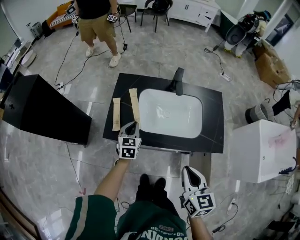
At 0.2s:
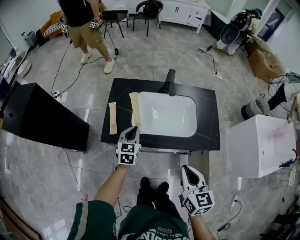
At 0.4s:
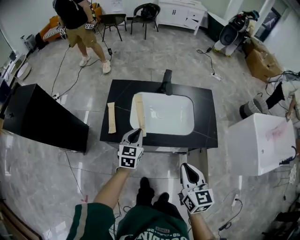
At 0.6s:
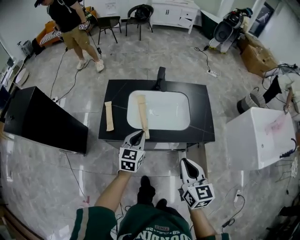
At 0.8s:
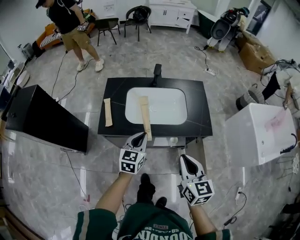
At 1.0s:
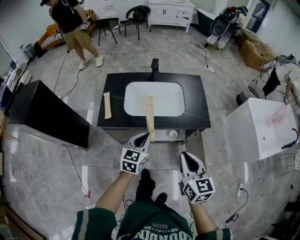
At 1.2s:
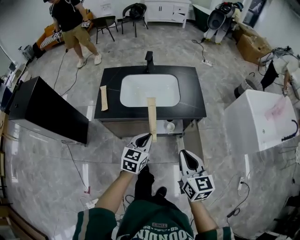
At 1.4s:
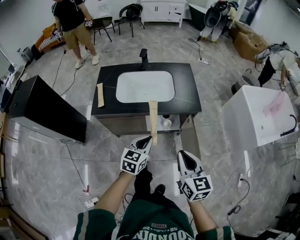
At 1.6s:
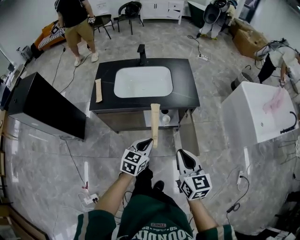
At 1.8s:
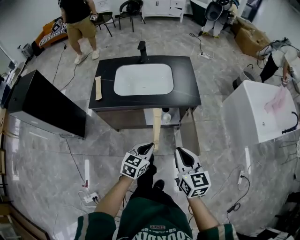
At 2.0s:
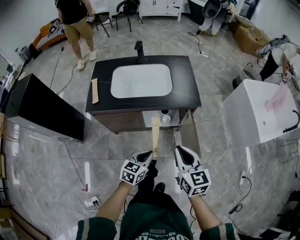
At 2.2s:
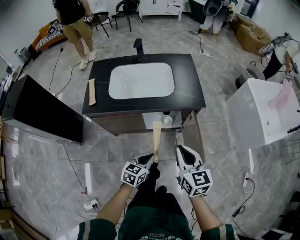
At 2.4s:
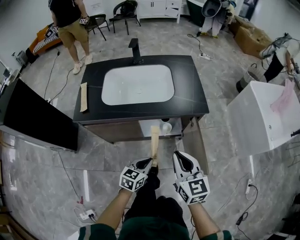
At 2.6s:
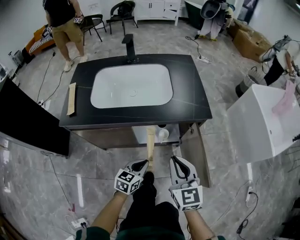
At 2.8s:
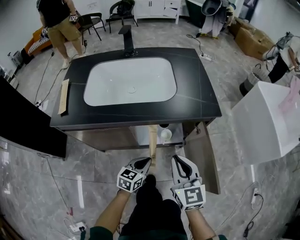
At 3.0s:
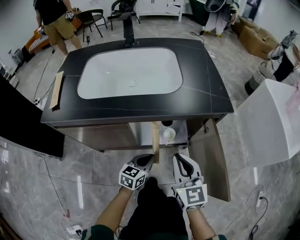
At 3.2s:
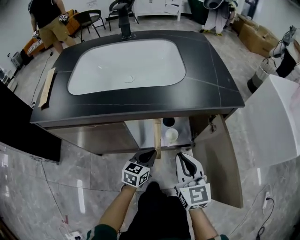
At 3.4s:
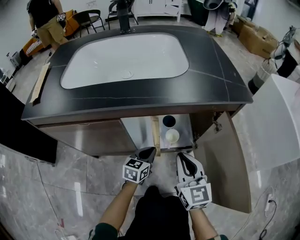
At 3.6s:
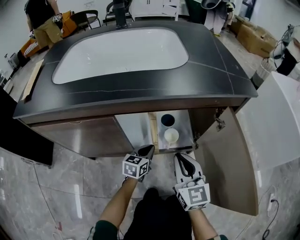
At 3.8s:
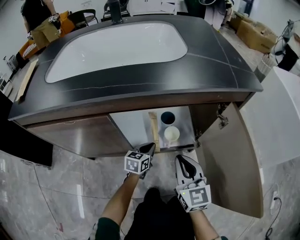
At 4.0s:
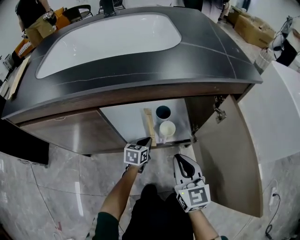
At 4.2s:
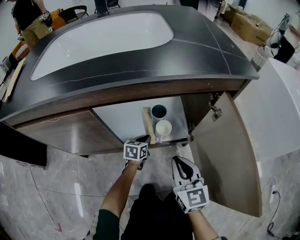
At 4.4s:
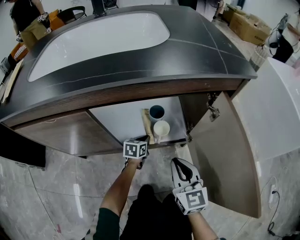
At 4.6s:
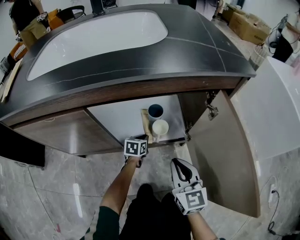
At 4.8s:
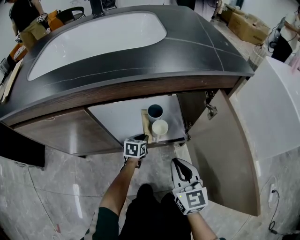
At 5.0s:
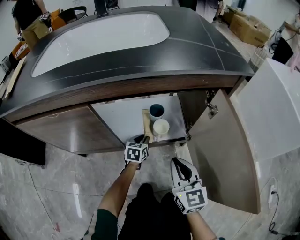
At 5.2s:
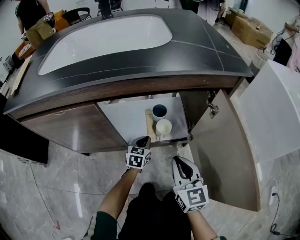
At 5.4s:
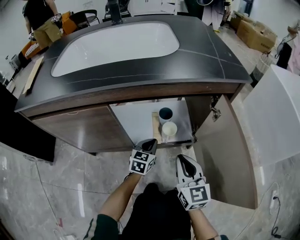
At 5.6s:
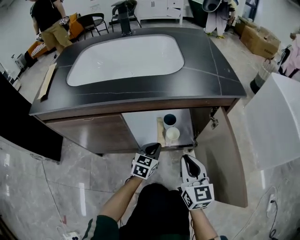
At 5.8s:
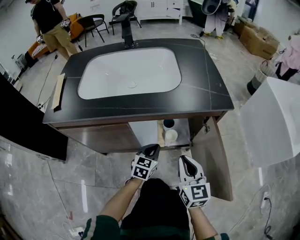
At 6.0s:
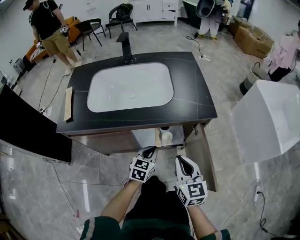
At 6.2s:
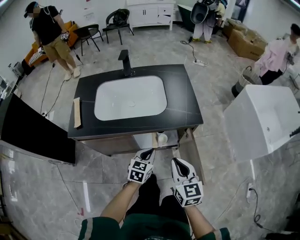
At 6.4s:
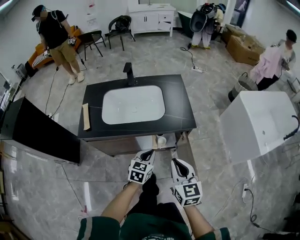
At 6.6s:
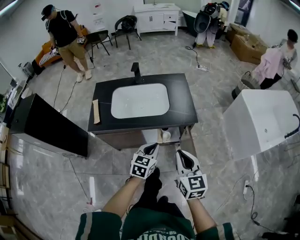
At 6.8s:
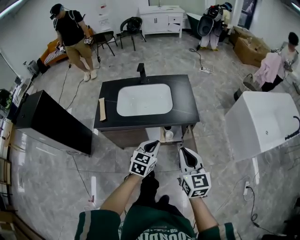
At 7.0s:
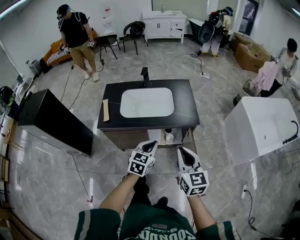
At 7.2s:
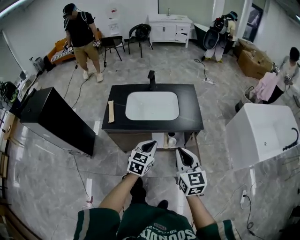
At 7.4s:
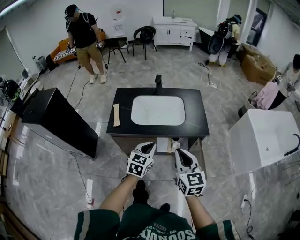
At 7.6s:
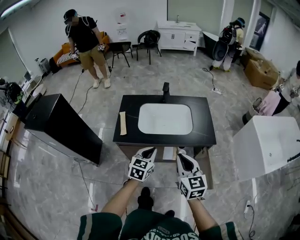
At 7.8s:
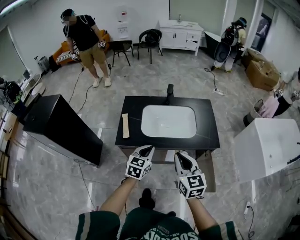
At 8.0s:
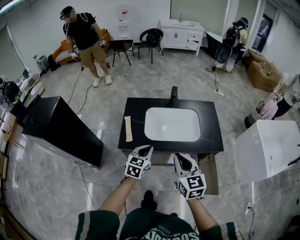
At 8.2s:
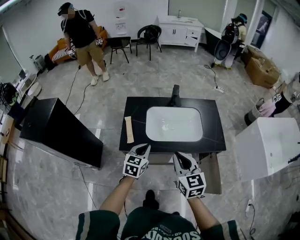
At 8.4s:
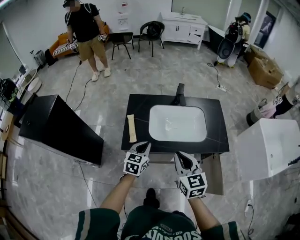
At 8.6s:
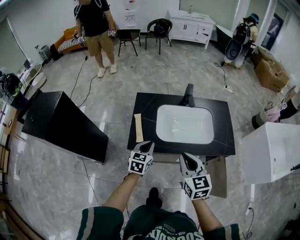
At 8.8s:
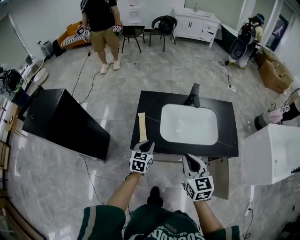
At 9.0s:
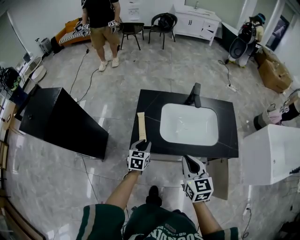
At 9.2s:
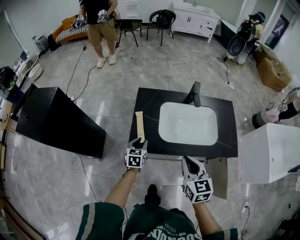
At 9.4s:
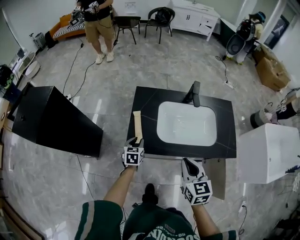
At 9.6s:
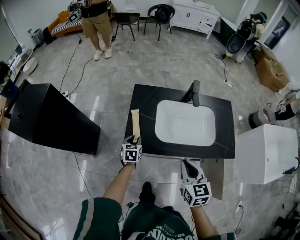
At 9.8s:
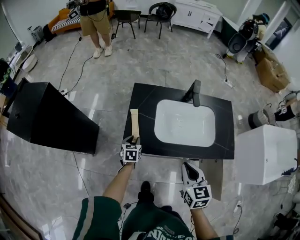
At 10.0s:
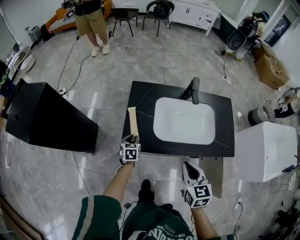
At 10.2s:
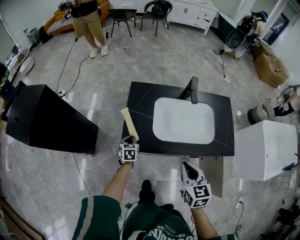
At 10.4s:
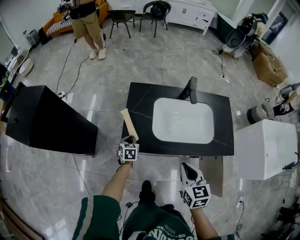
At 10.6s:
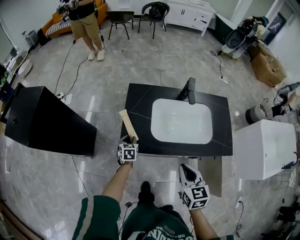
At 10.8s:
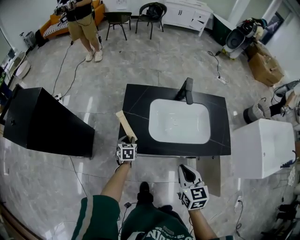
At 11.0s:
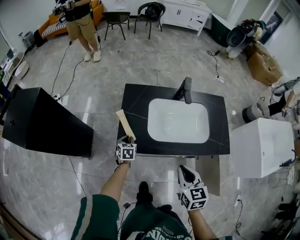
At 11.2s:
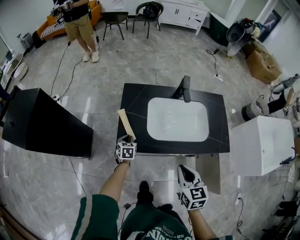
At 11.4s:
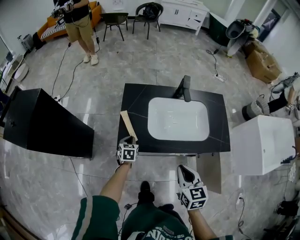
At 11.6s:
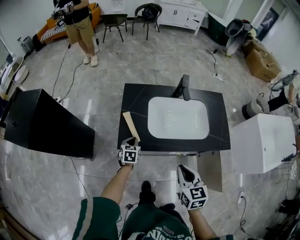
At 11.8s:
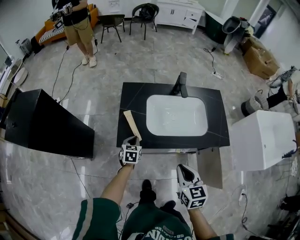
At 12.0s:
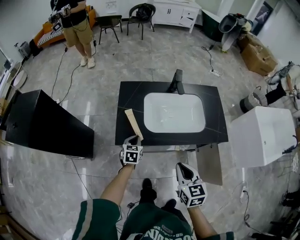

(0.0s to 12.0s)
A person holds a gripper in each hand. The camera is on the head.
0.0s - 1.6s: The left gripper goes about 50 cm backward and to the right, and changes its angle by about 30 degrees. The right gripper travels backward and to the right by roughly 30 cm.
1.6s - 3.0s: The two grippers go approximately 40 cm downward and forward.
3.0s - 4.4s: The left gripper goes about 30 cm downward and forward. The right gripper travels downward by some 25 cm.
4.4s - 6.0s: Both grippers move upward, about 35 cm.
6.0s - 7.6s: Both grippers travel together upward and to the left, about 40 cm.
7.6s - 9.0s: The two grippers go roughly 30 cm to the left, forward and downward.
9.0s - 10.4s: The right gripper ends up about 5 cm from where it was, while the left gripper heads downward and forward, covering roughly 15 cm.
10.4s - 12.0s: The right gripper moves backward, some 5 cm. Meanwhile the left gripper goes some 10 cm to the right and backward.

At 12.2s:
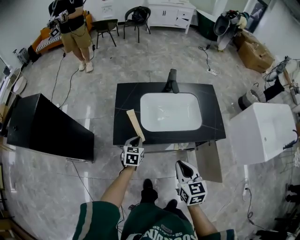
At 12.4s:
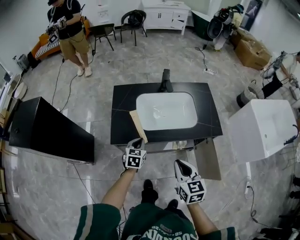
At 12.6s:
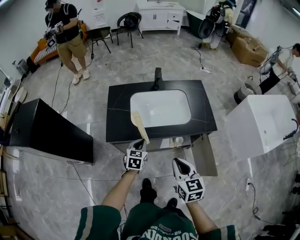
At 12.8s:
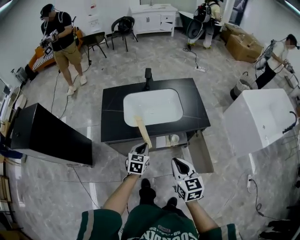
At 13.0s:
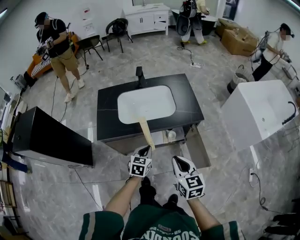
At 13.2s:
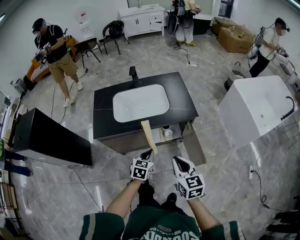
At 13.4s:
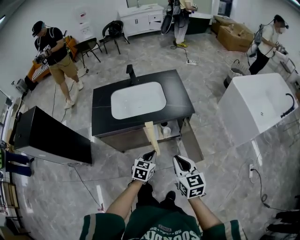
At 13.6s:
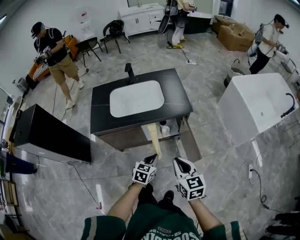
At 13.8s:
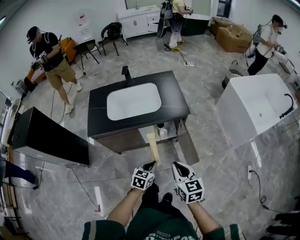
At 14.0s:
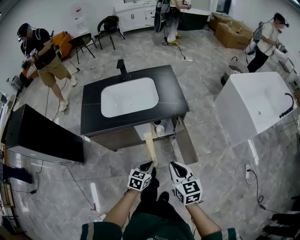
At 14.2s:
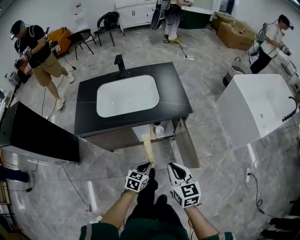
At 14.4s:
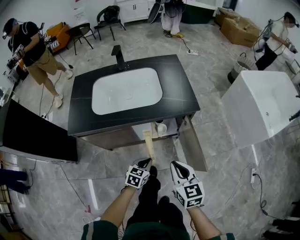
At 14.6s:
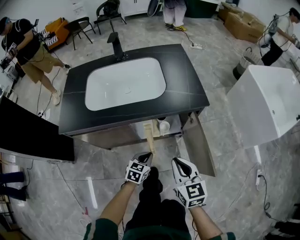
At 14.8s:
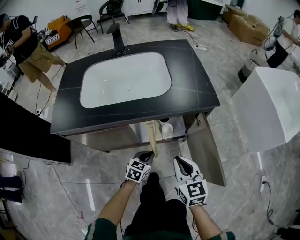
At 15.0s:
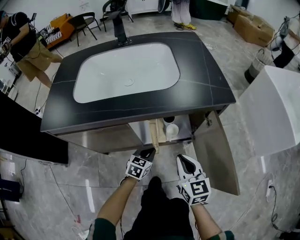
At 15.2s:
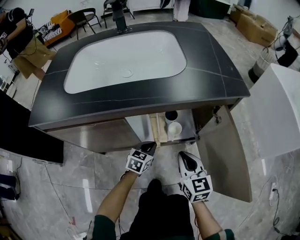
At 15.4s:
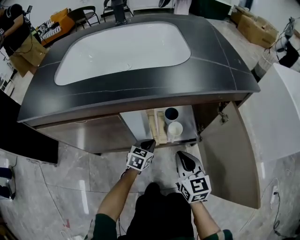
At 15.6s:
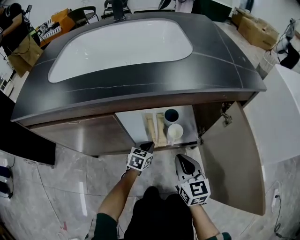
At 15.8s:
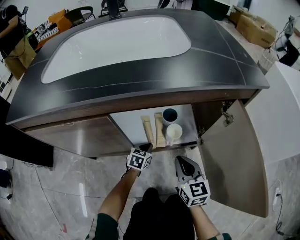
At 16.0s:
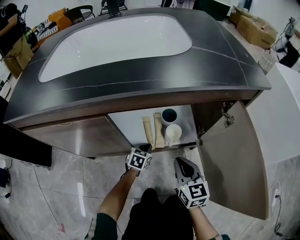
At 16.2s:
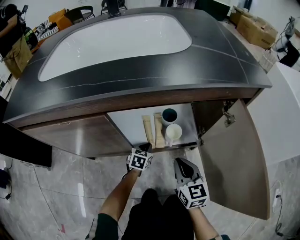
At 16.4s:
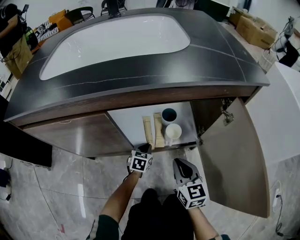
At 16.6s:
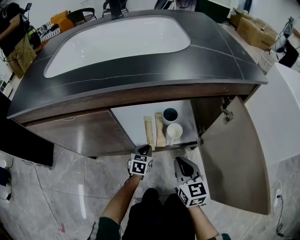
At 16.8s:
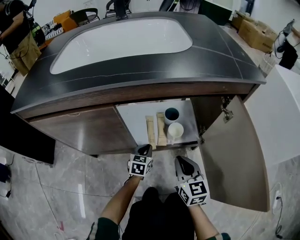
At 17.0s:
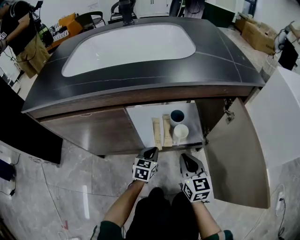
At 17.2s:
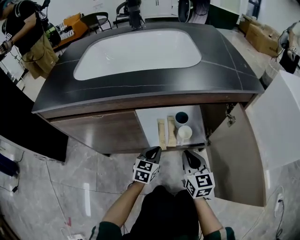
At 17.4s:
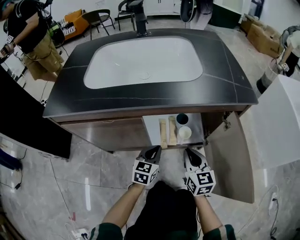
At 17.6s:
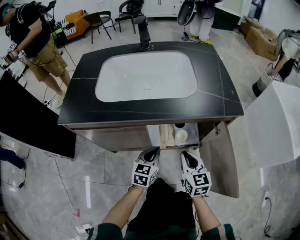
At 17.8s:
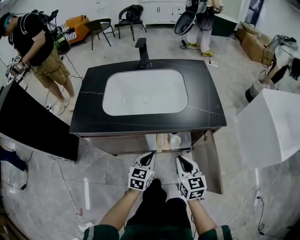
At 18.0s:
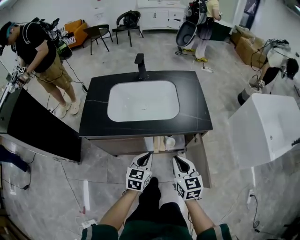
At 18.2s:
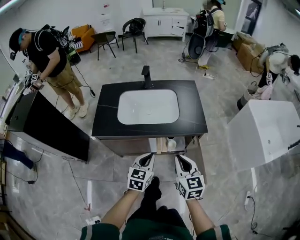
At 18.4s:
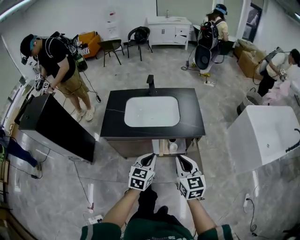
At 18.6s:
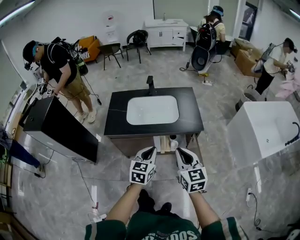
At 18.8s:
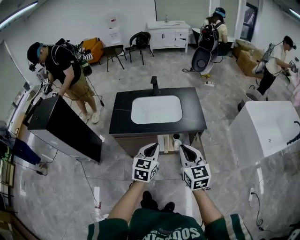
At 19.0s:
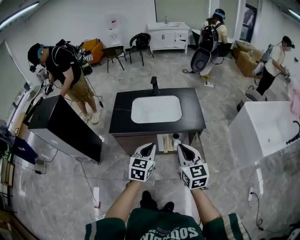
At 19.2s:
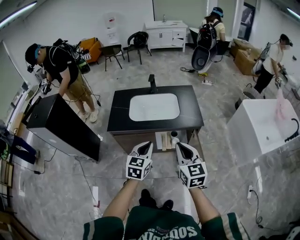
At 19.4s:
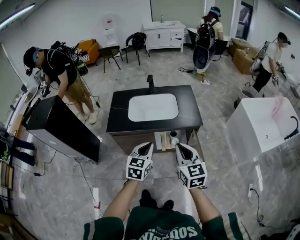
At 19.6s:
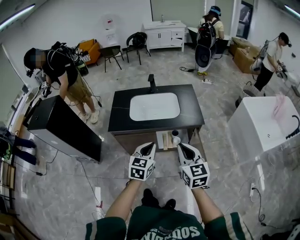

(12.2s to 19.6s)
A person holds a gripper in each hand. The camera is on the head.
12.2s - 13.6s: Both grippers travel together to the right and backward, approximately 40 cm. The left gripper rotates approximately 20 degrees.
13.6s - 15.2s: The grippers both shift downward and forward by some 60 cm.
15.2s - 16.6s: Both grippers move downward, some 15 cm.
16.6s - 18.2s: Both grippers travel together upward, roughly 60 cm.
18.2s - 19.6s: Both grippers travel together upward and backward, approximately 20 cm.

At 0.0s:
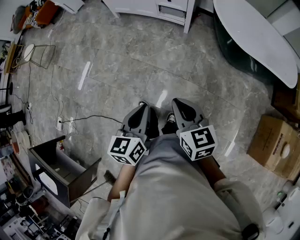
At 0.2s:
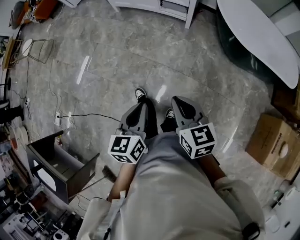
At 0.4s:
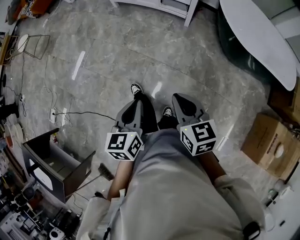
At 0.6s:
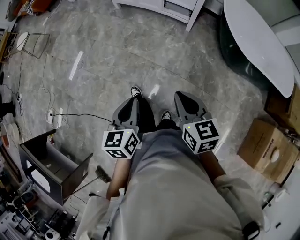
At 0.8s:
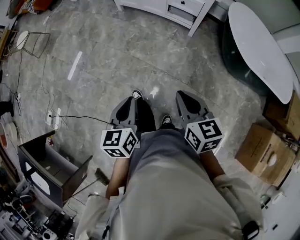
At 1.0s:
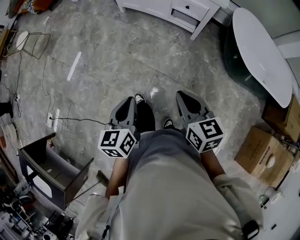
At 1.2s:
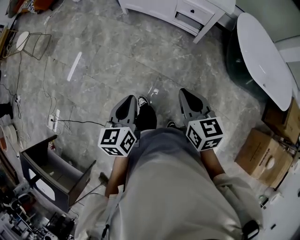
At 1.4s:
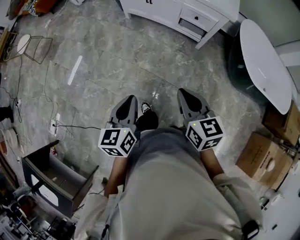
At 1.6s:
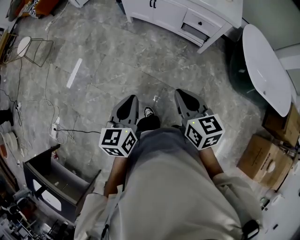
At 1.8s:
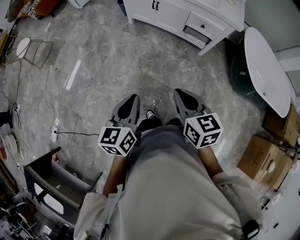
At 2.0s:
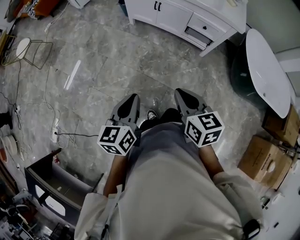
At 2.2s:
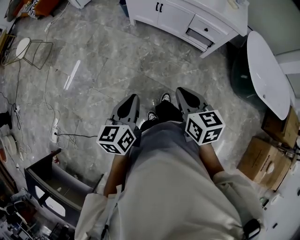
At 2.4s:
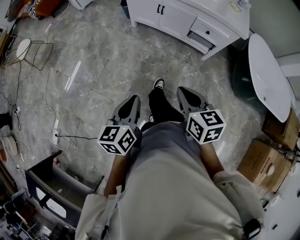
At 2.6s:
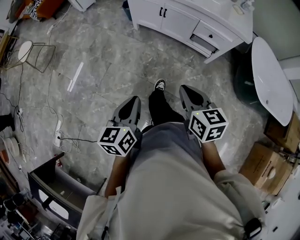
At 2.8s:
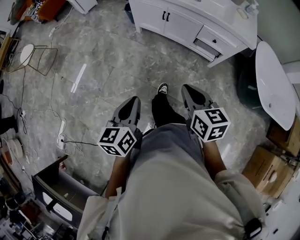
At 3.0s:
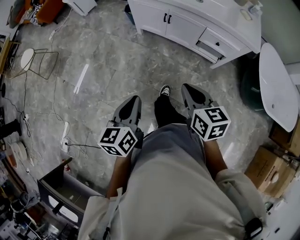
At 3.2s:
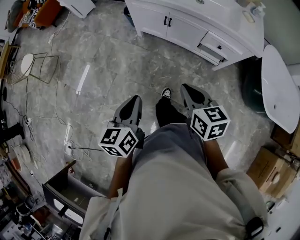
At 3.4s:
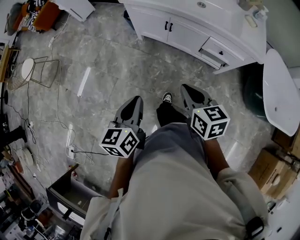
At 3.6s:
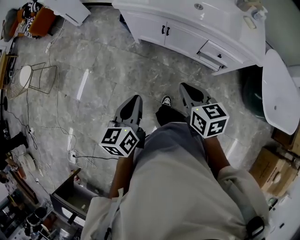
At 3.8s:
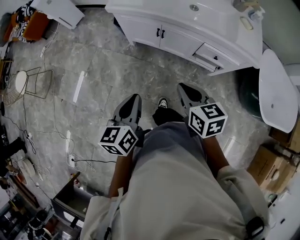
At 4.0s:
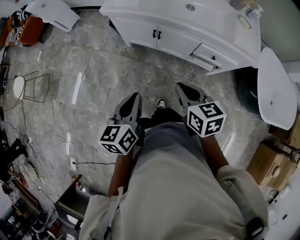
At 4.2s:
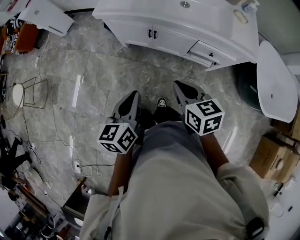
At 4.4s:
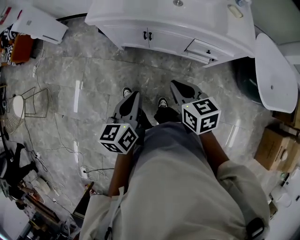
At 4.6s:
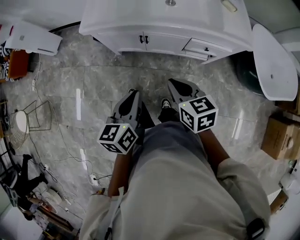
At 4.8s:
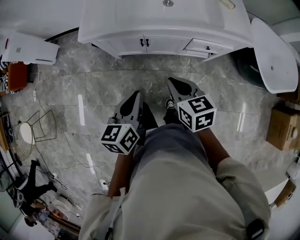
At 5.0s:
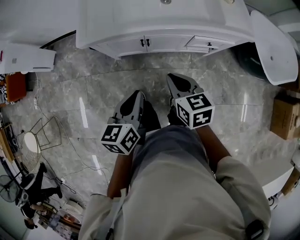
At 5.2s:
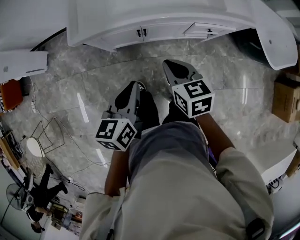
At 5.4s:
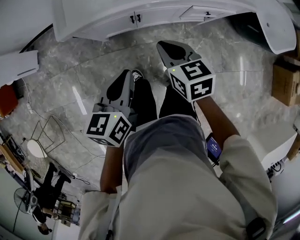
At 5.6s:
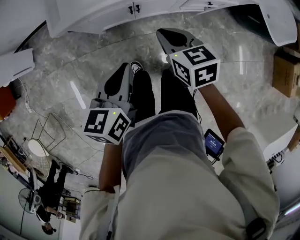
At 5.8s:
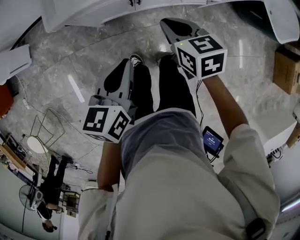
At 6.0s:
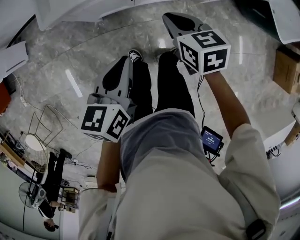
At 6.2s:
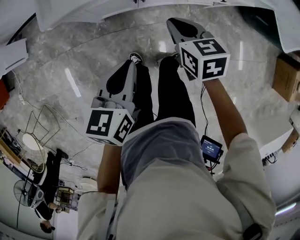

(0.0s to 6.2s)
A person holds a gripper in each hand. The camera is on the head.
0.0s - 1.6s: Both grippers move forward and to the left, approximately 35 cm.
1.6s - 3.2s: Both grippers travel together forward, some 30 cm.
3.2s - 4.6s: The grippers both shift forward by some 25 cm.
4.6s - 6.2s: The left gripper is displaced to the left, forward and downward by roughly 20 cm, and changes its angle by some 20 degrees. The right gripper heads forward, downward and to the left, covering roughly 25 cm.
